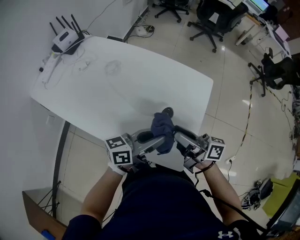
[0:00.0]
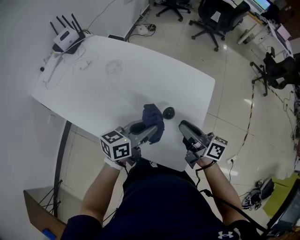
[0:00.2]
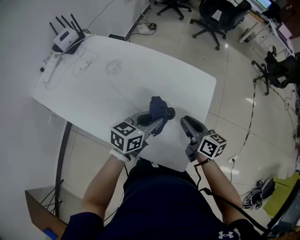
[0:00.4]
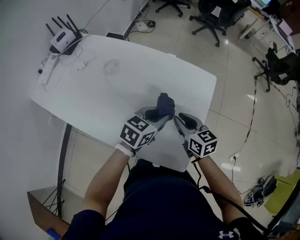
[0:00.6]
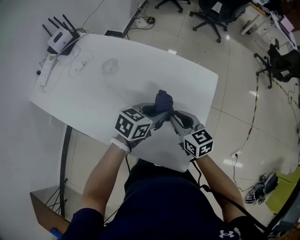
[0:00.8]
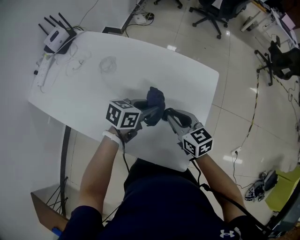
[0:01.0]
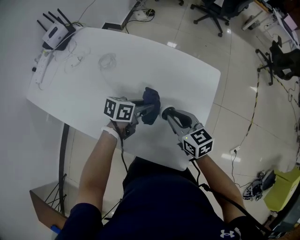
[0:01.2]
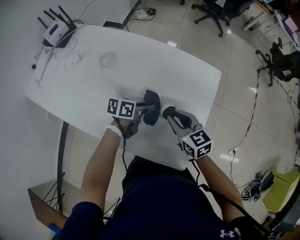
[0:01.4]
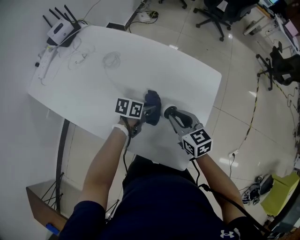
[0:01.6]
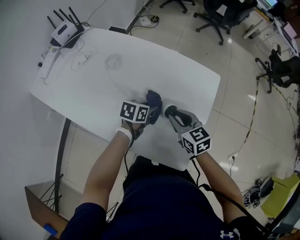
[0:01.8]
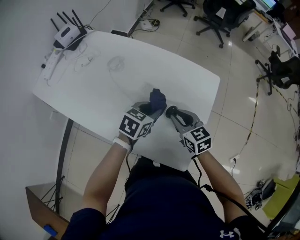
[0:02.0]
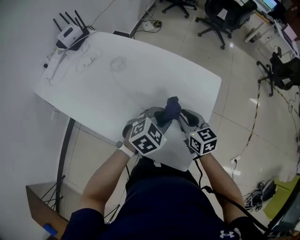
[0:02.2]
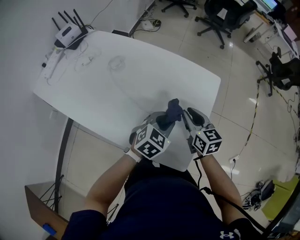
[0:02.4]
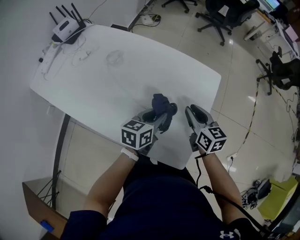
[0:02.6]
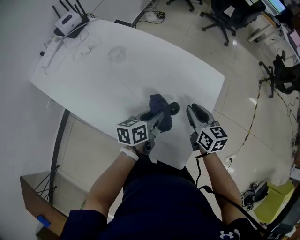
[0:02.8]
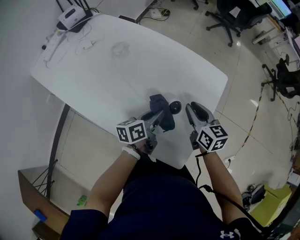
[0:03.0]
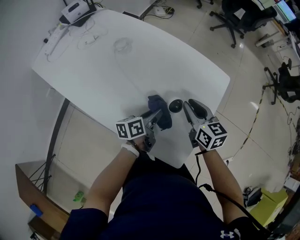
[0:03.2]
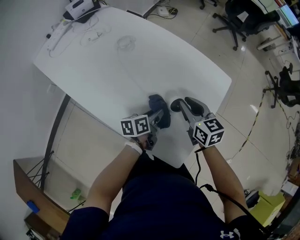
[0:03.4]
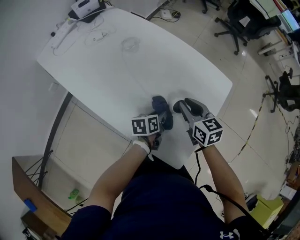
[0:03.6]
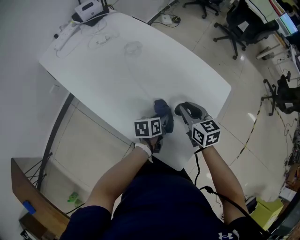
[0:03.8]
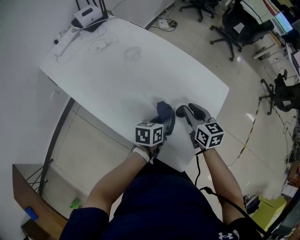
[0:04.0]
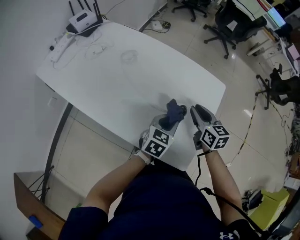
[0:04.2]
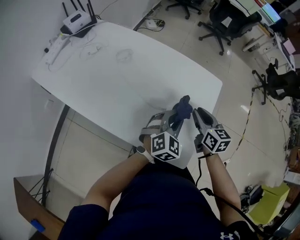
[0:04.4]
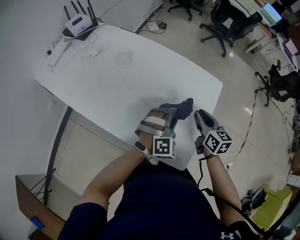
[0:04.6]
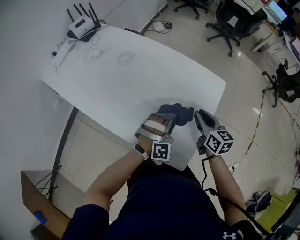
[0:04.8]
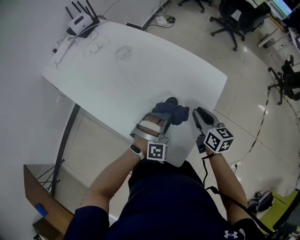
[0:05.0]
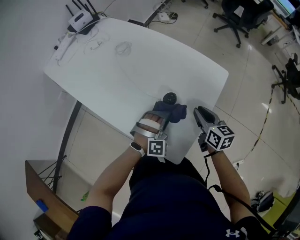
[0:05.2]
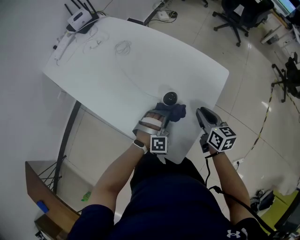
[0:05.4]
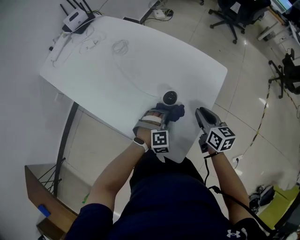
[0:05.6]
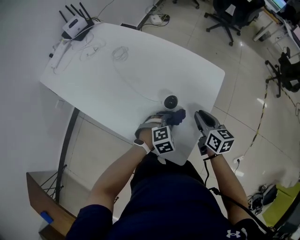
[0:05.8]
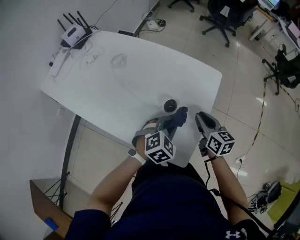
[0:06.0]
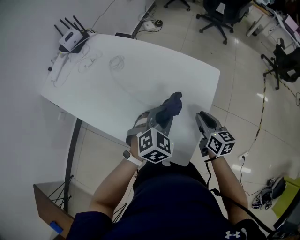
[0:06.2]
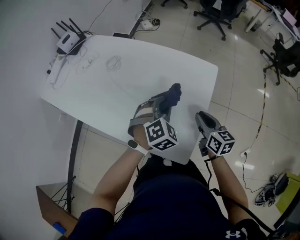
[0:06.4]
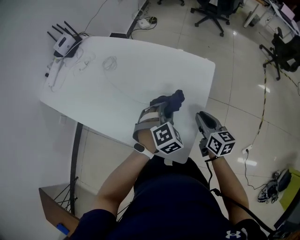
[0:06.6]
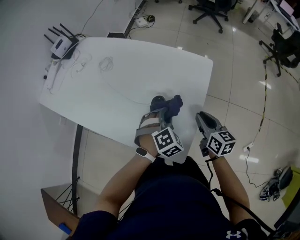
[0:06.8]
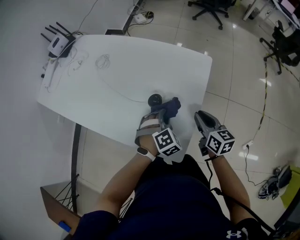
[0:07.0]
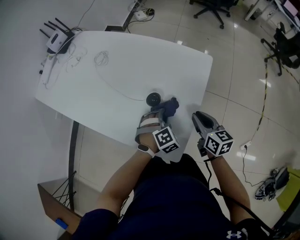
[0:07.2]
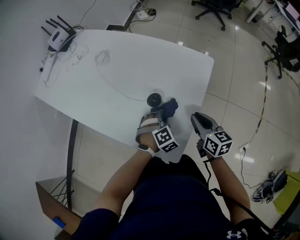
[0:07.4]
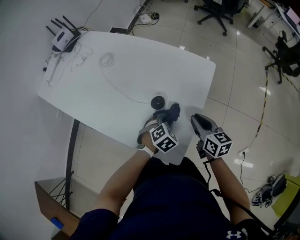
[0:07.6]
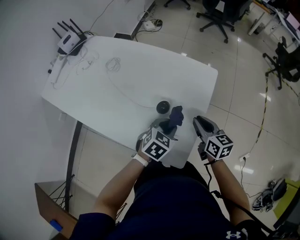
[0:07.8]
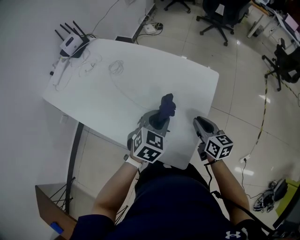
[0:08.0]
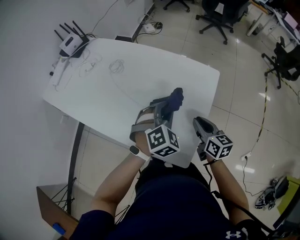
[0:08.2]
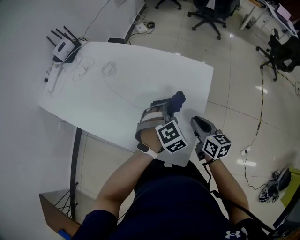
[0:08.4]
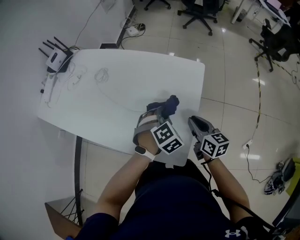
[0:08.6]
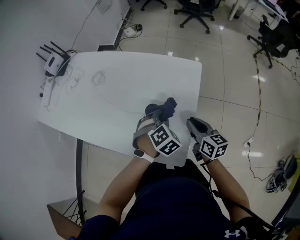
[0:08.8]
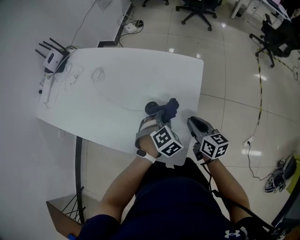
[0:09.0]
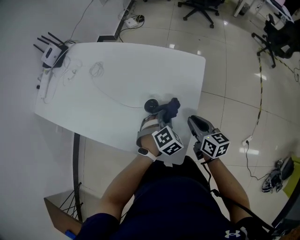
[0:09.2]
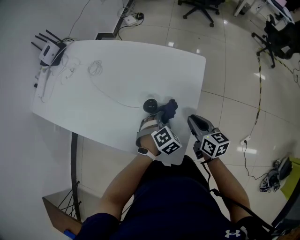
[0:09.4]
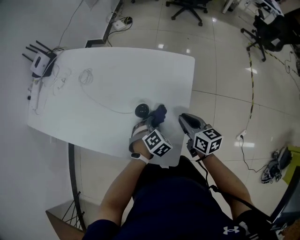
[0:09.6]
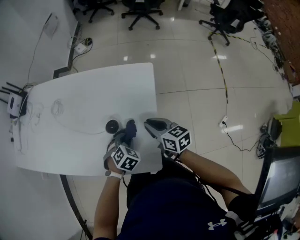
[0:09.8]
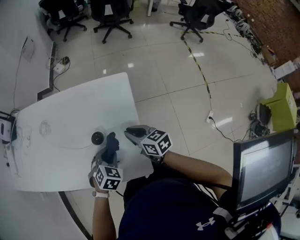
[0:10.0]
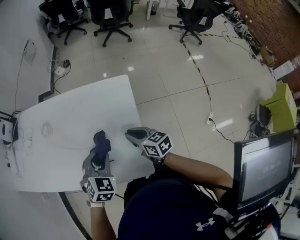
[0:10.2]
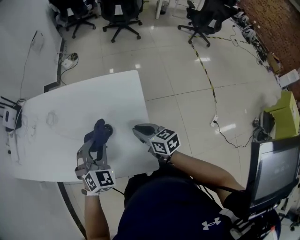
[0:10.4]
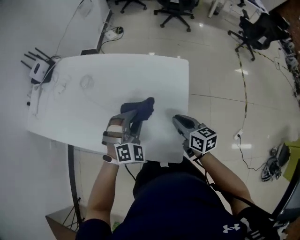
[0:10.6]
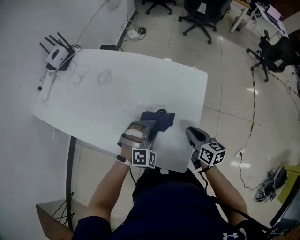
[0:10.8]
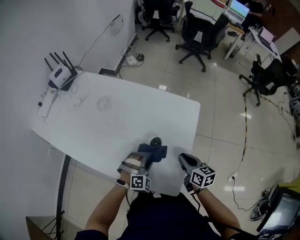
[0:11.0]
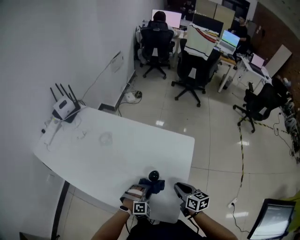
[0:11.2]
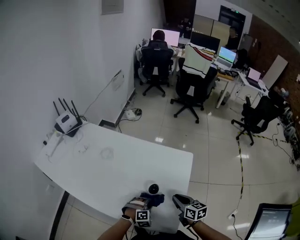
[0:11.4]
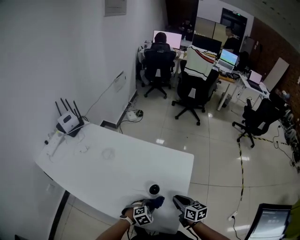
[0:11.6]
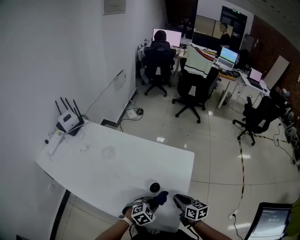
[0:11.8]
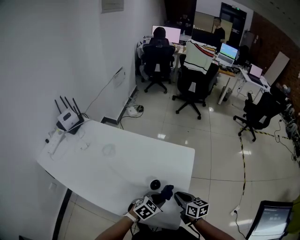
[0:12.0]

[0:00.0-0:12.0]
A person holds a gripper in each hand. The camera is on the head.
0:00.0 to 0:01.6: The right gripper shifts some 15 cm downward and forward, points its fingers some 40 degrees further downward, and closes; the left gripper moves downward and forward, roughly 25 cm, and tips its fingers downward by roughly 40 degrees.
0:01.6 to 0:03.0: The right gripper goes about 5 cm to the right; the left gripper shifts roughly 5 cm upward, and changes its angle by approximately 40 degrees.
0:03.0 to 0:04.4: The left gripper goes some 10 cm upward and to the right, and rotates around the line of its fingers by approximately 80 degrees, clockwise from behind.
0:04.4 to 0:06.0: The right gripper goes approximately 5 cm to the right; the left gripper travels downward and back again, roughly 15 cm each way, and swivels approximately 20 degrees.
0:06.0 to 0:07.6: The right gripper changes place by some 5 cm, while the left gripper goes roughly 10 cm downward.
0:07.6 to 0:09.0: The left gripper travels upward by some 5 cm.
0:09.0 to 0:10.4: The right gripper changes place by roughly 5 cm. Meanwhile the left gripper moves upward and to the left, about 15 cm, and changes its angle by some 30 degrees.
0:10.4 to 0:12.0: The left gripper goes approximately 10 cm downward and to the right, and changes its angle by some 40 degrees.

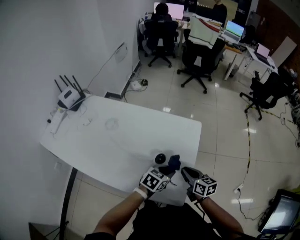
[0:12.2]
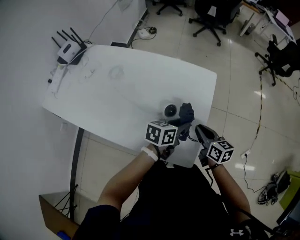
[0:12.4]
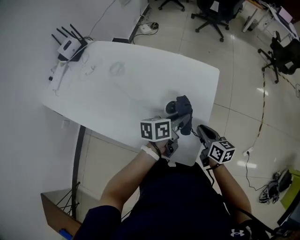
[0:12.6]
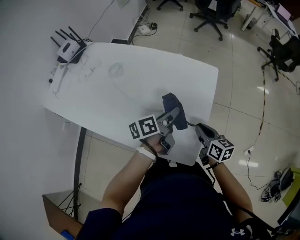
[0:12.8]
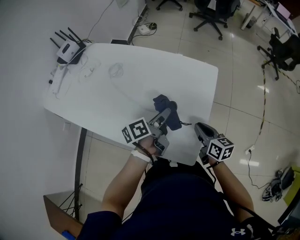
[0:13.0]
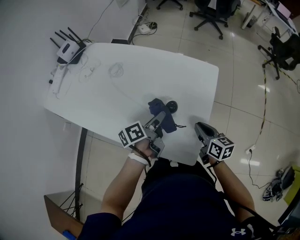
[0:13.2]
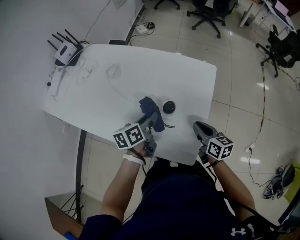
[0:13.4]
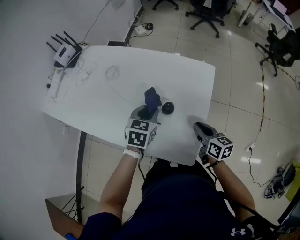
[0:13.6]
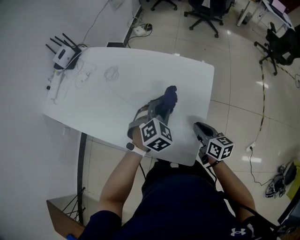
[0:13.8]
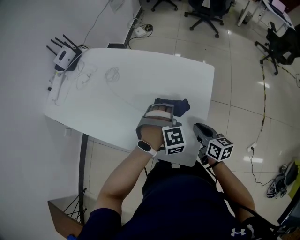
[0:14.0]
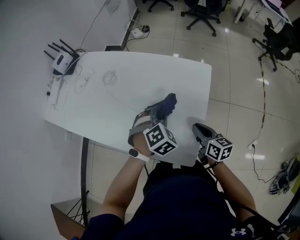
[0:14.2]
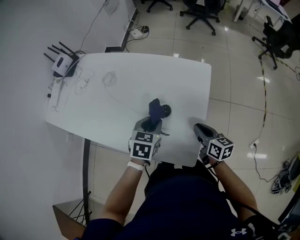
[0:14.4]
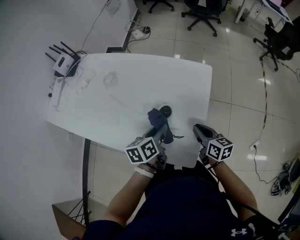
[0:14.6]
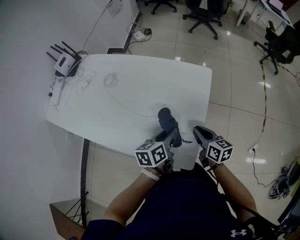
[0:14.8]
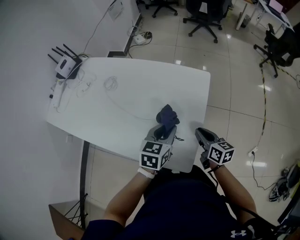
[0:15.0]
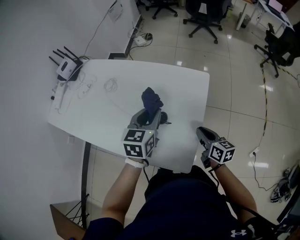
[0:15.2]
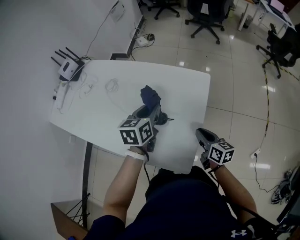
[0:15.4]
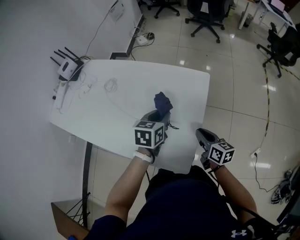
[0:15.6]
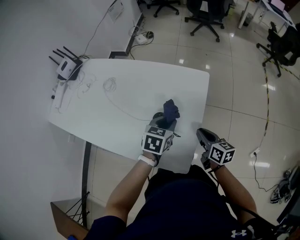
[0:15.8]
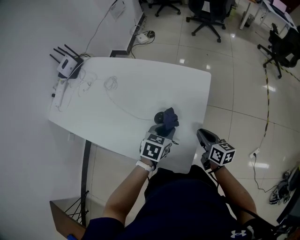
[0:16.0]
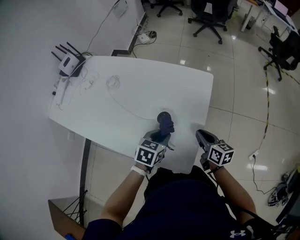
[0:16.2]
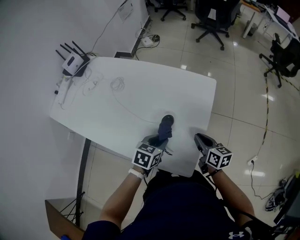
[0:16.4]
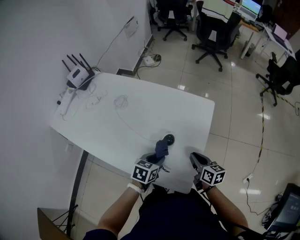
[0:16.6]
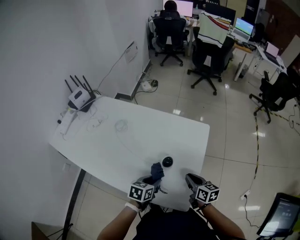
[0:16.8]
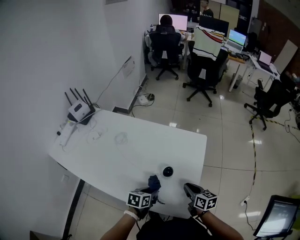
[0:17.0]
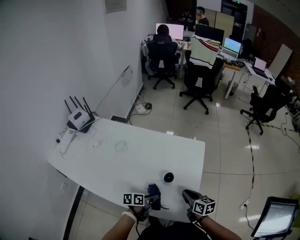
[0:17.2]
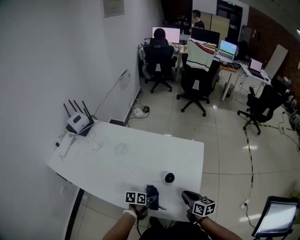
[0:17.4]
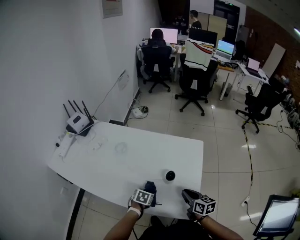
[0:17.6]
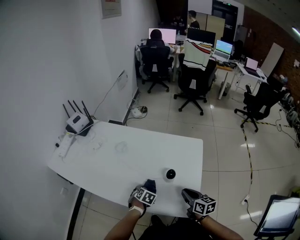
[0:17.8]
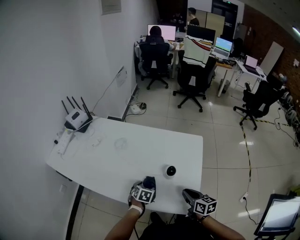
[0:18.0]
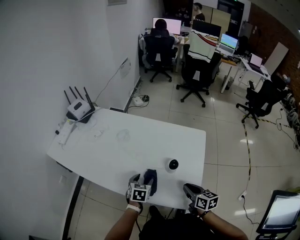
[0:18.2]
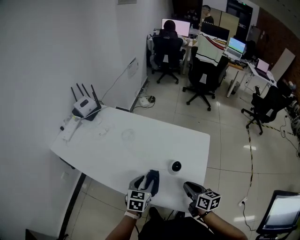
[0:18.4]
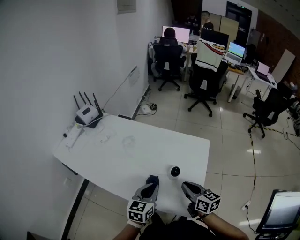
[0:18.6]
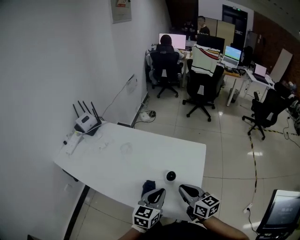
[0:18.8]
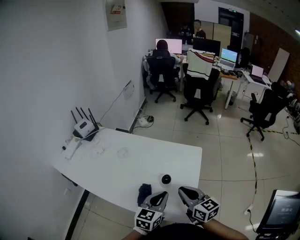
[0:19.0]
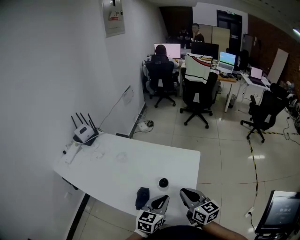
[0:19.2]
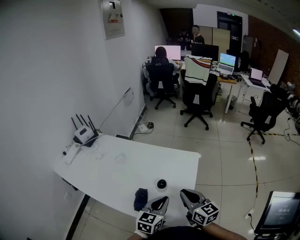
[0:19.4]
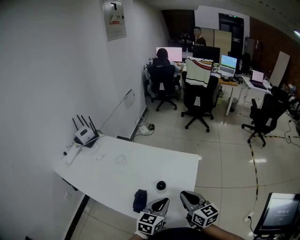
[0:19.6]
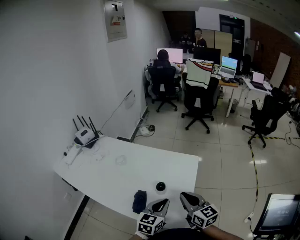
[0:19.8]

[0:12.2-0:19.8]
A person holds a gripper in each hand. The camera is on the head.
0:12.2 to 0:13.8: The left gripper travels to the left and forward by some 10 cm, and changes its angle by about 50 degrees.
0:13.8 to 0:15.2: The left gripper goes about 5 cm upward, and twists roughly 50 degrees counterclockwise, seen from behind.
0:15.2 to 0:16.8: The right gripper moves to the left, approximately 5 cm. Meanwhile the left gripper goes about 15 cm downward and backward, and swivels about 30 degrees.
0:16.8 to 0:18.2: The left gripper goes roughly 10 cm to the left, changes its angle by approximately 20 degrees, and opens up. The right gripper travels backward by about 5 cm.
0:18.2 to 0:19.8: The left gripper shifts approximately 25 cm to the right and upward, changes its angle by about 30 degrees, and closes its fingers, while the right gripper goes about 15 cm upward, and changes its angle by roughly 30 degrees.

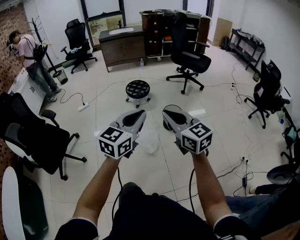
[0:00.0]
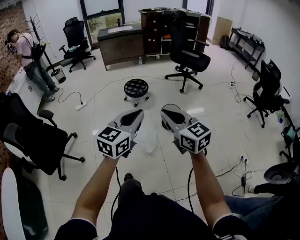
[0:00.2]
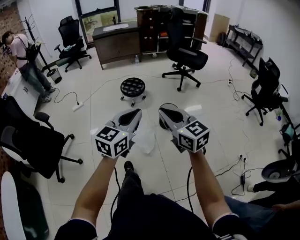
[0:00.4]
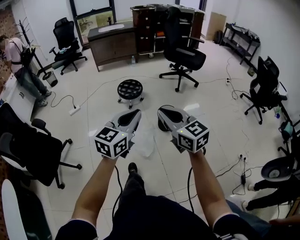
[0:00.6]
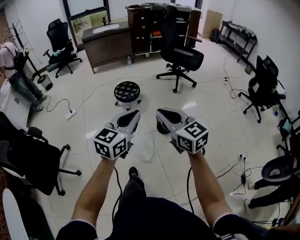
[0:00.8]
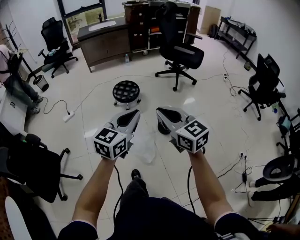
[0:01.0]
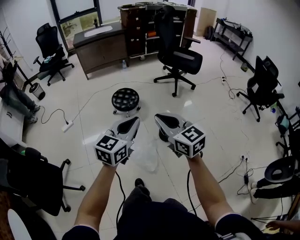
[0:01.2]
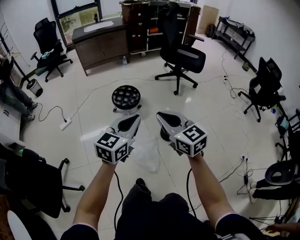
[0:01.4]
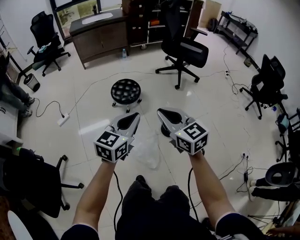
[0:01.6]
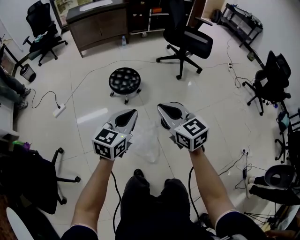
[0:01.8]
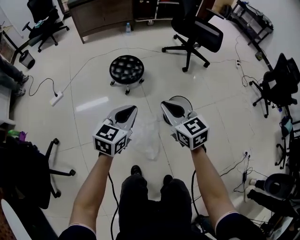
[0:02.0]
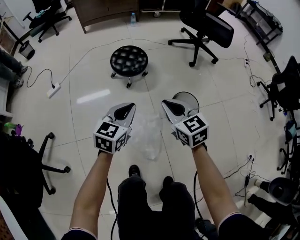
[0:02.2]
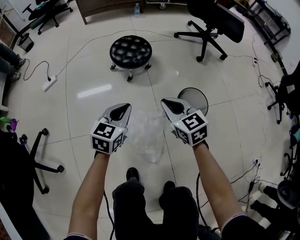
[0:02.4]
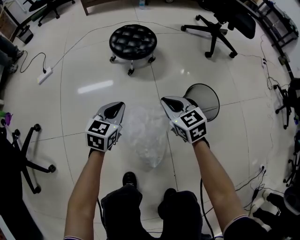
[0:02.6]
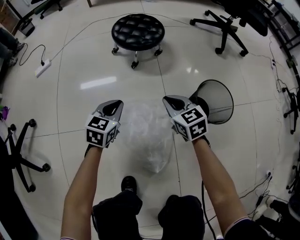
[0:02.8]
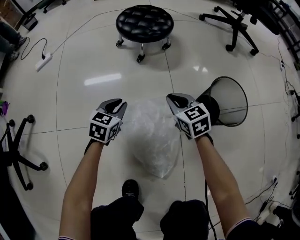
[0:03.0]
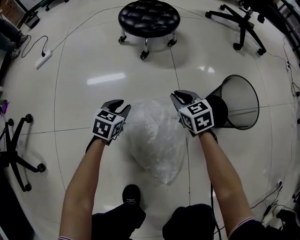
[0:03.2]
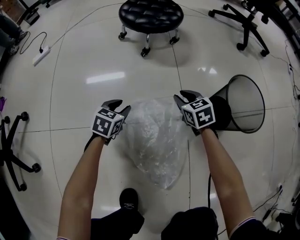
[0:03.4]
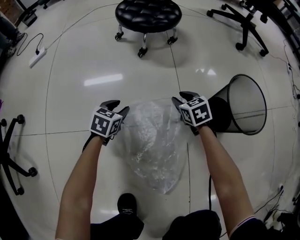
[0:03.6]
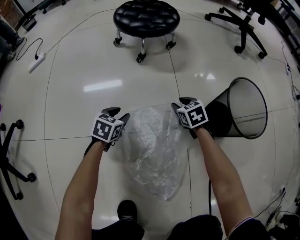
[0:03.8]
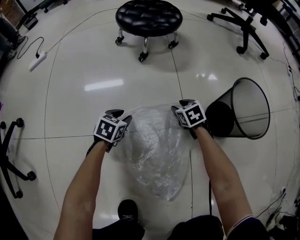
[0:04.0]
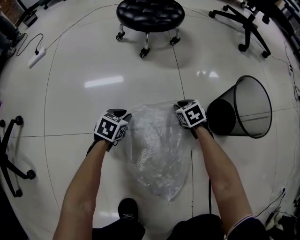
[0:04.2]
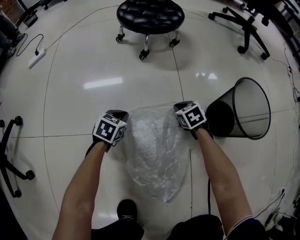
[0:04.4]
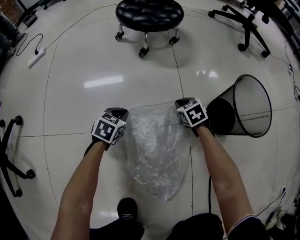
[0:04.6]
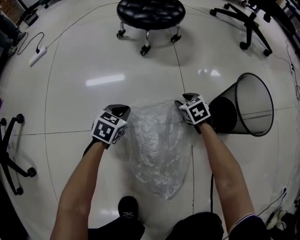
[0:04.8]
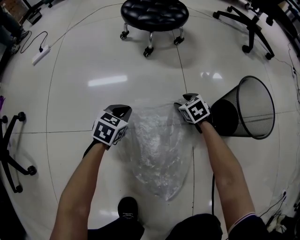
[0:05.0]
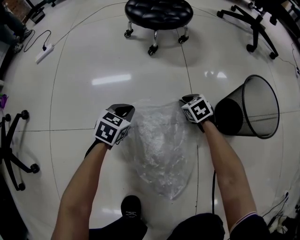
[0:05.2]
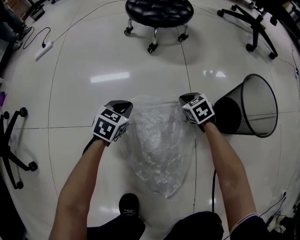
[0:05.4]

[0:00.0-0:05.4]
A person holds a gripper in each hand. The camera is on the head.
0:00.0 to 0:01.4: Both grippers travel together forward, approximately 30 cm.
0:01.4 to 0:02.8: Both grippers travel together downward, some 60 cm. The left gripper swivels approximately 30 degrees; the right gripper turns by some 20 degrees.
0:02.8 to 0:04.0: The two grippers go some 30 cm downward. The right gripper turns by about 20 degrees, and opens up. The left gripper swivels approximately 20 degrees, and opens up.
0:04.0 to 0:05.4: The right gripper closes up; the left gripper closes.
